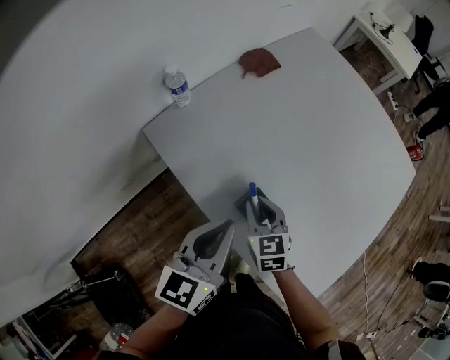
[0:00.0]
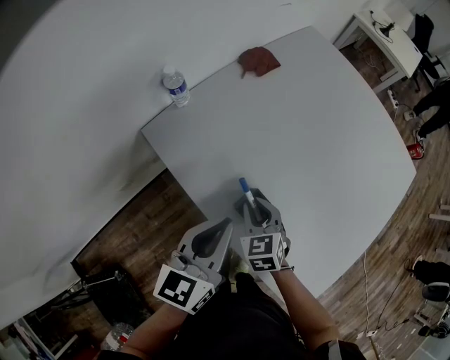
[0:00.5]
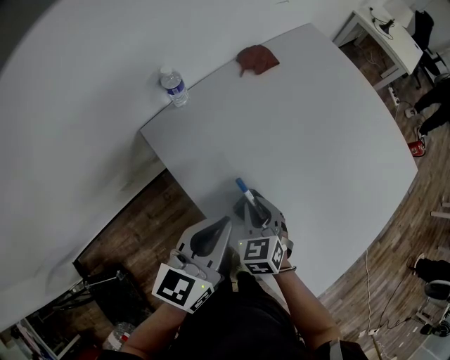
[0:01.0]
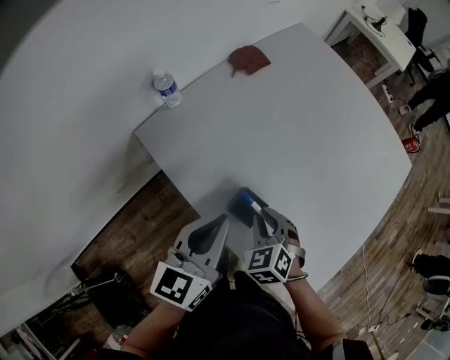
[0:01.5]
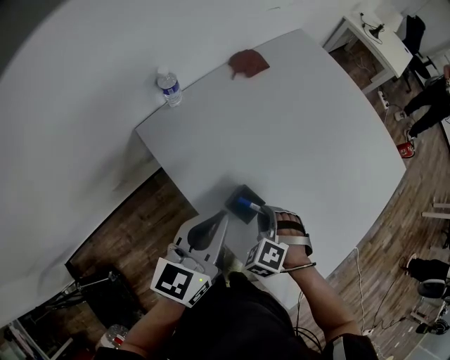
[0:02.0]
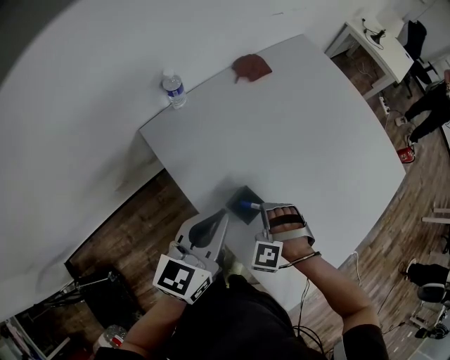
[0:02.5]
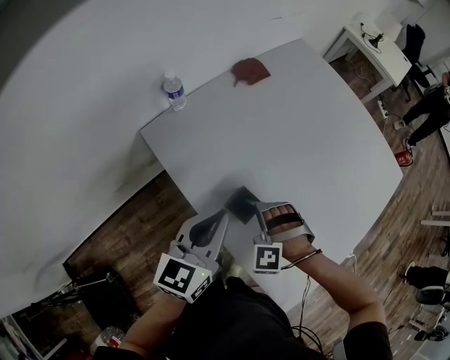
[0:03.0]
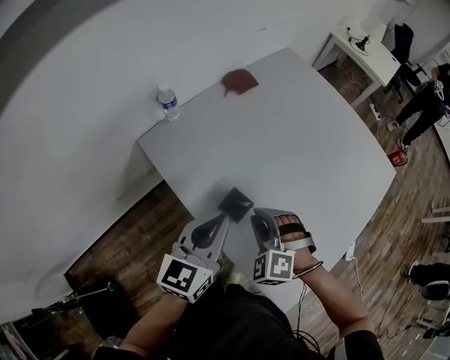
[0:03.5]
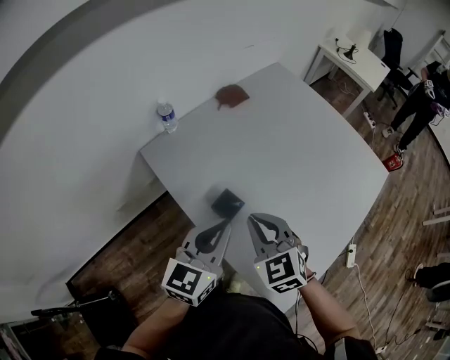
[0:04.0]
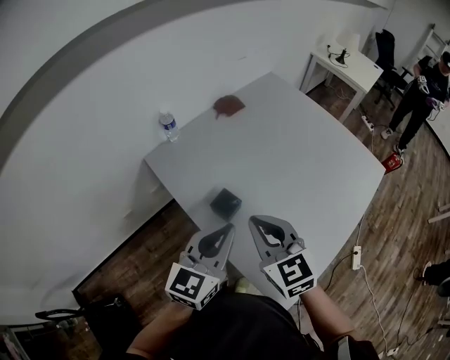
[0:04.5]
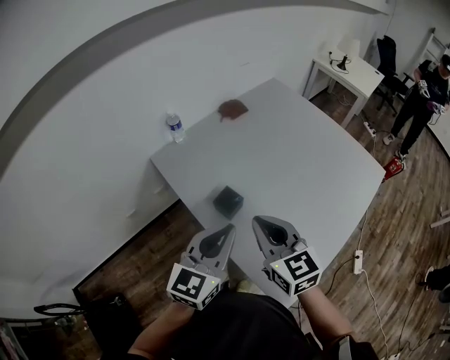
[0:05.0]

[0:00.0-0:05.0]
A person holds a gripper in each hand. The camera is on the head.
0:00.0 to 0:02.5: The right gripper moves some 5 cm, and rolls counterclockwise, seen from behind, by about 80 degrees.
0:02.5 to 0:05.0: The right gripper shifts some 25 cm upward, and rolls clockwise, seen from behind, by about 70 degrees. The left gripper travels backward, to the right and upward by approximately 15 cm.

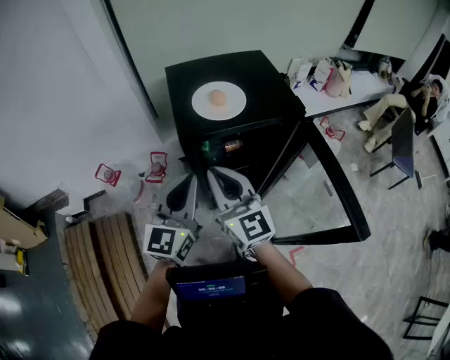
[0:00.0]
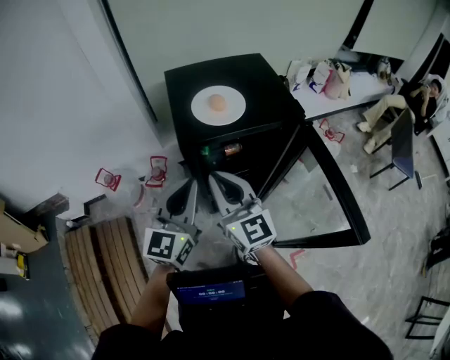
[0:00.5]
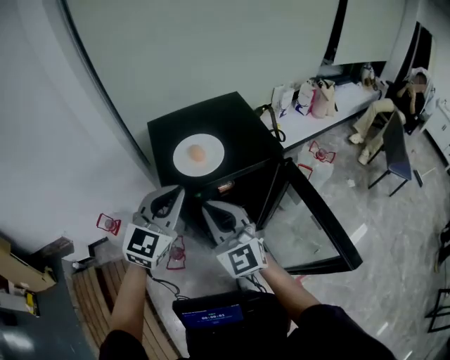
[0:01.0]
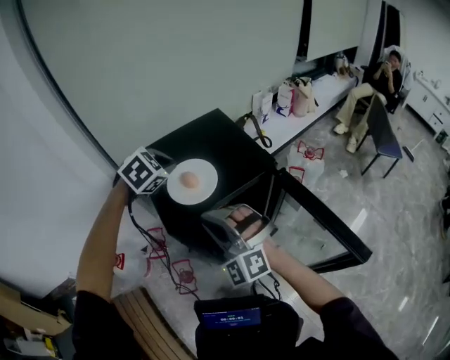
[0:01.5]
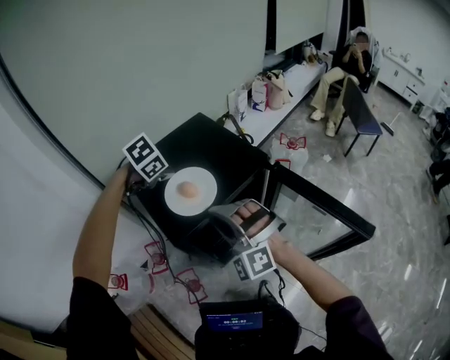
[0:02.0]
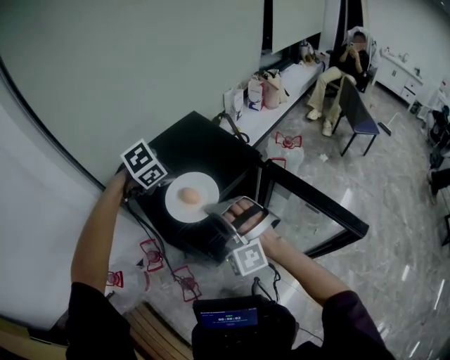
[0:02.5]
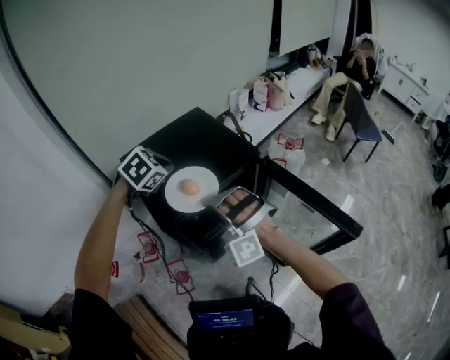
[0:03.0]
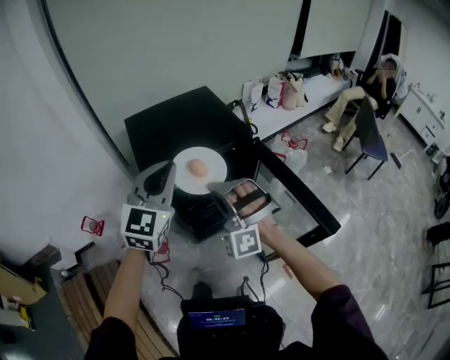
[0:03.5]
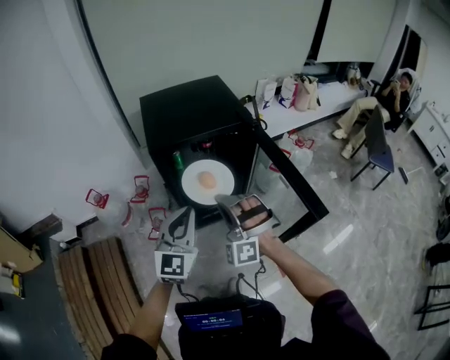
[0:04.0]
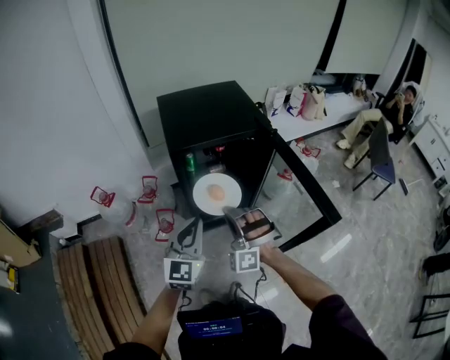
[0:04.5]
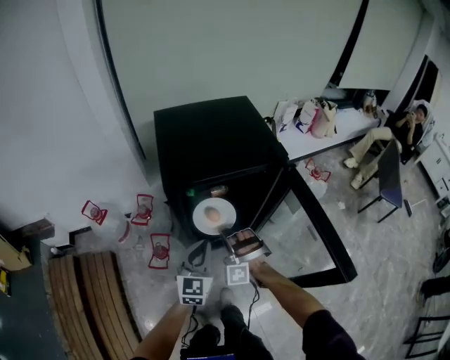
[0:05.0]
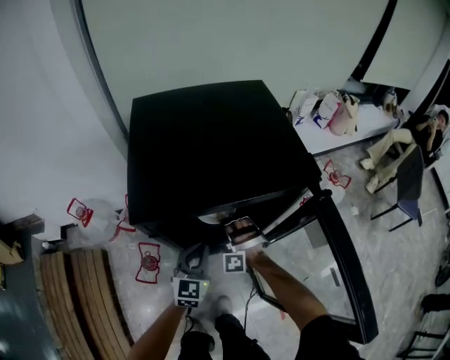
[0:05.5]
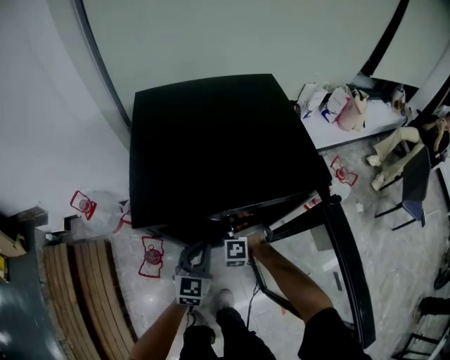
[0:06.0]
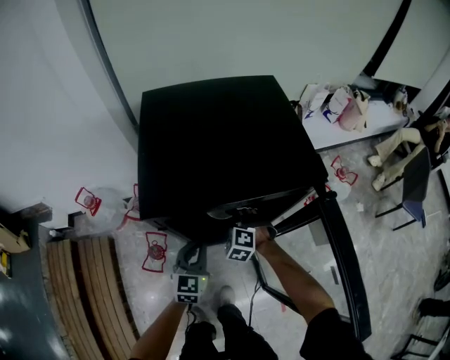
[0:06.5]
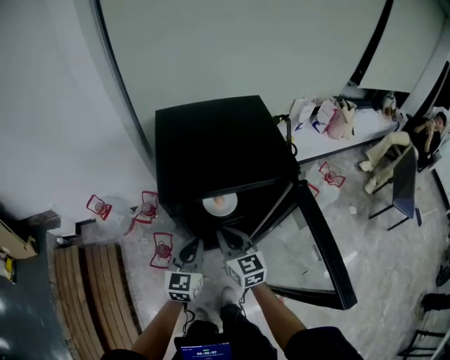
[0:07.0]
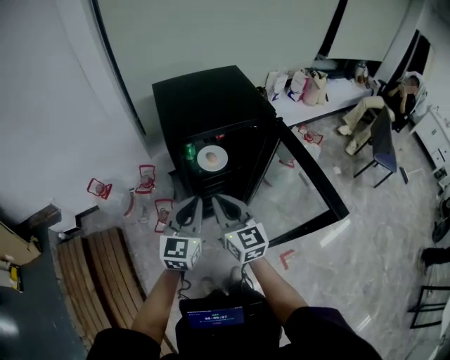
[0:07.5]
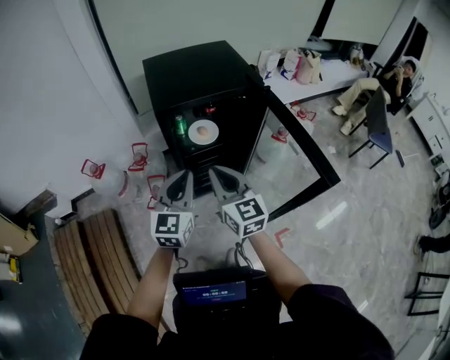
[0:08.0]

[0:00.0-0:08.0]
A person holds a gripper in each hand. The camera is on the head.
0:00.0 to 0:02.0: The right gripper moves approximately 10 cm, and rolls counterclockwise, seen from behind, by roughly 70 degrees. Meanwhile the left gripper travels upward and back again, some 5 cm each way, and angles its fingers downward, by some 70 degrees.
0:02.0 to 0:04.0: The right gripper moves approximately 25 cm. Meanwhile the left gripper moves about 10 cm upward and comes back, and points its fingers about 70 degrees further upward.
0:04.0 to 0:06.0: Both grippers travel together downward and forward, roughly 40 cm. The right gripper points its fingers some 40 degrees further downward.
0:06.0 to 0:08.0: The two grippers go some 40 cm upward and backward. The right gripper rolls clockwise, seen from behind, by some 80 degrees, and opens, then closes again.

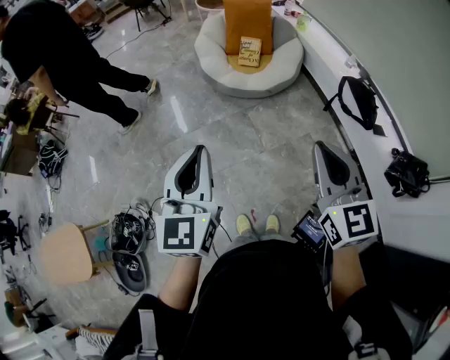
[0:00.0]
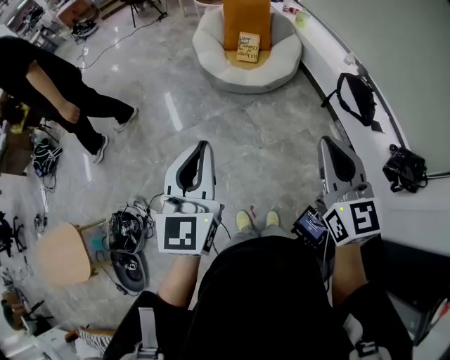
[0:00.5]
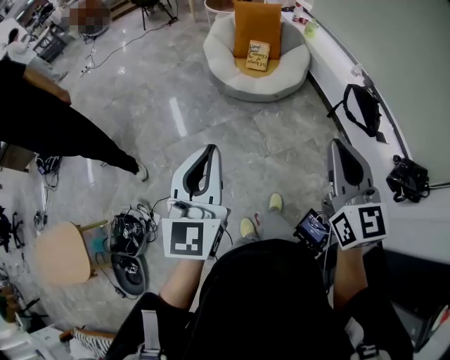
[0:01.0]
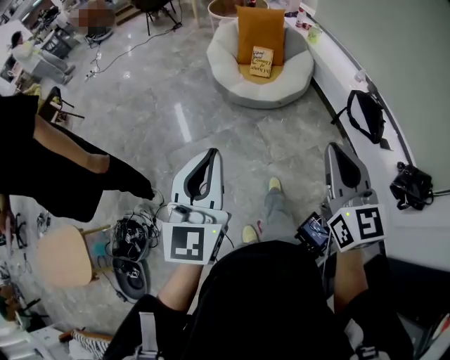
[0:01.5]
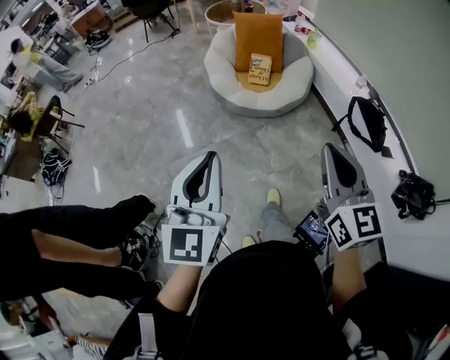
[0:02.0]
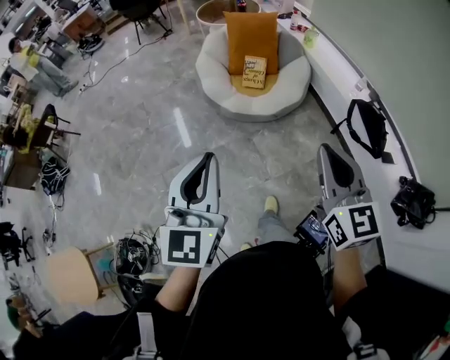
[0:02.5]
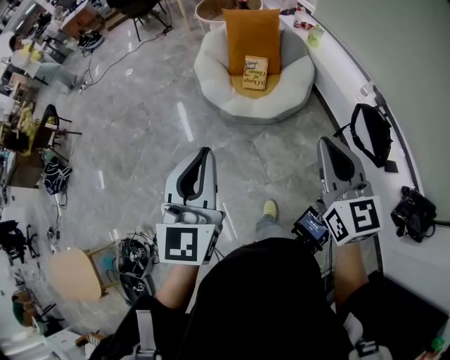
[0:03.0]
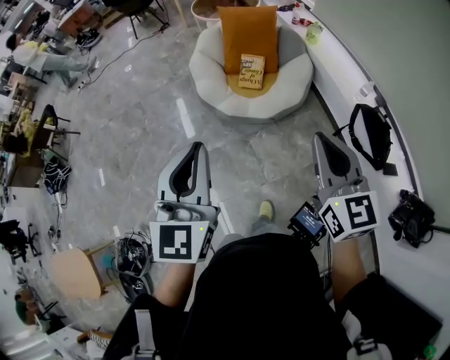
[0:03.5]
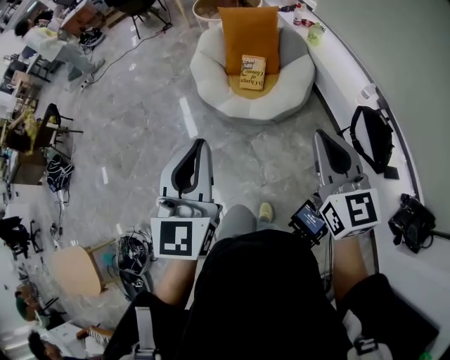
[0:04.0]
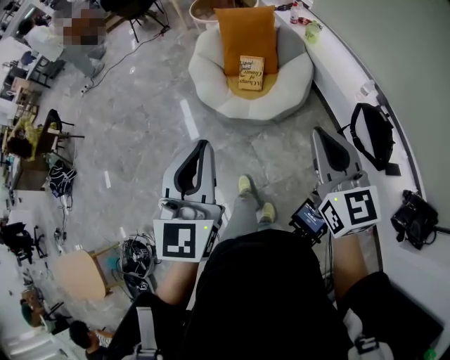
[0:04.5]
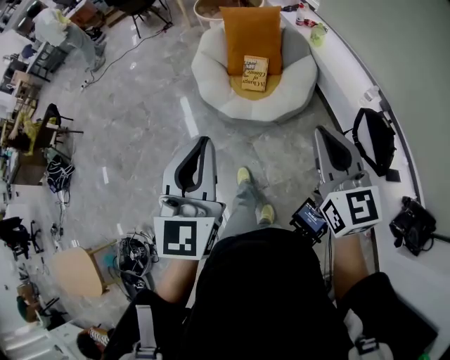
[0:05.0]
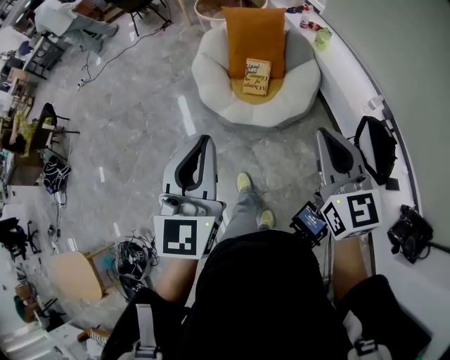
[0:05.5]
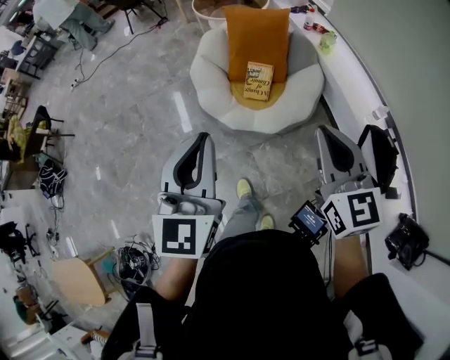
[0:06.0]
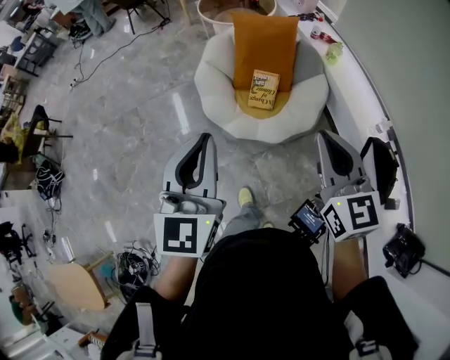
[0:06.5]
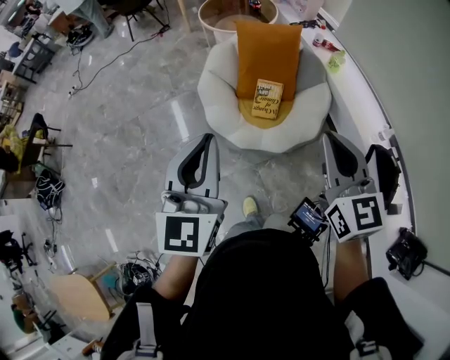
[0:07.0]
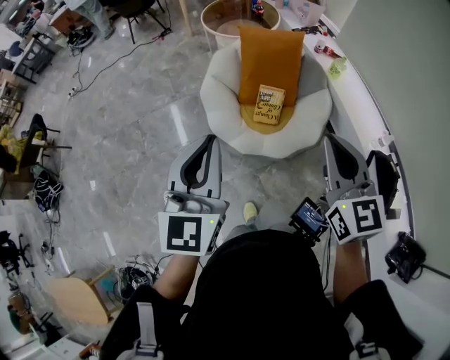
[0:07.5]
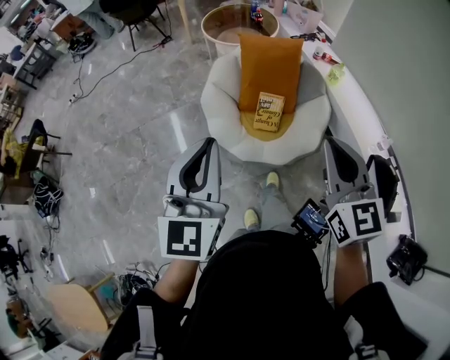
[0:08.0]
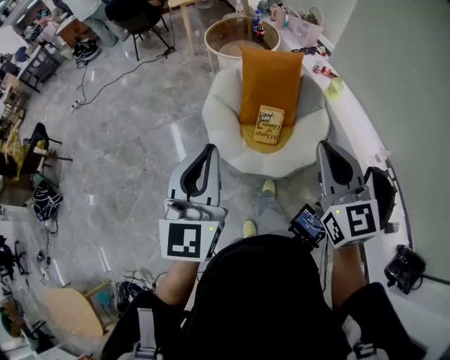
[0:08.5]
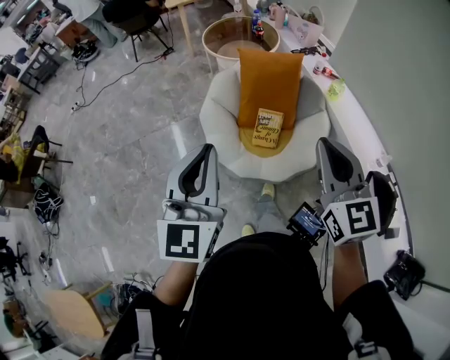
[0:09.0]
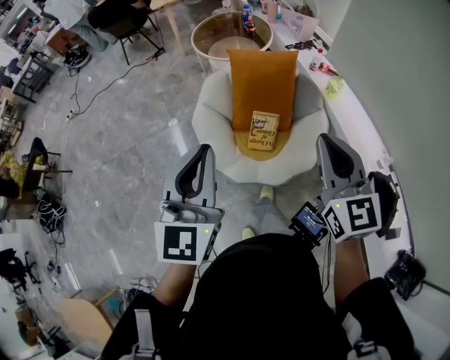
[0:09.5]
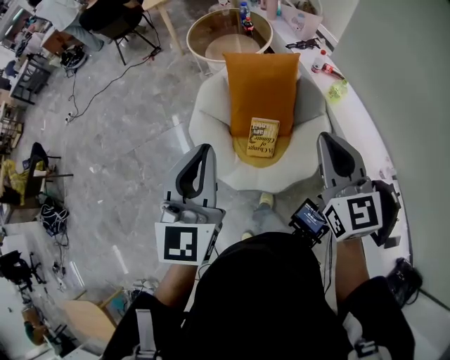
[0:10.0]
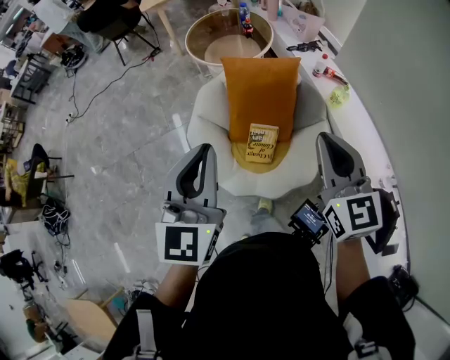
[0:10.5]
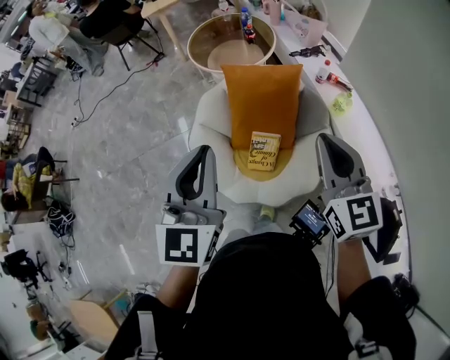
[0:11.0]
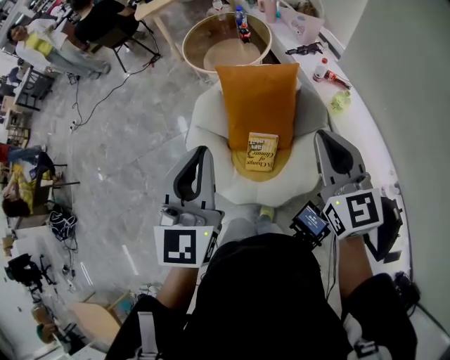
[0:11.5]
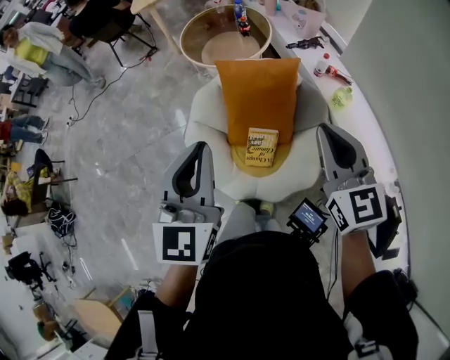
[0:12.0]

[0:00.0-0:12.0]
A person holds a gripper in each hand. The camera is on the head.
0:00.0 to 0:02.0: Both grippers move forward, some 10 cm.
0:02.0 to 0:04.0: Both grippers move forward and to the right, approximately 30 cm.
0:04.0 to 0:06.0: The two grippers go approximately 20 cm forward.
0:06.0 to 0:08.0: The two grippers go roughly 15 cm forward and to the left.
0:08.0 to 0:10.0: The left gripper travels forward and to the right by approximately 25 cm, while the right gripper heads forward, covering about 25 cm.
0:10.0 to 0:12.0: The two grippers go approximately 15 cm forward and to the right.

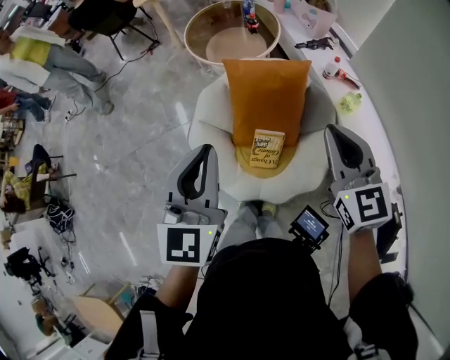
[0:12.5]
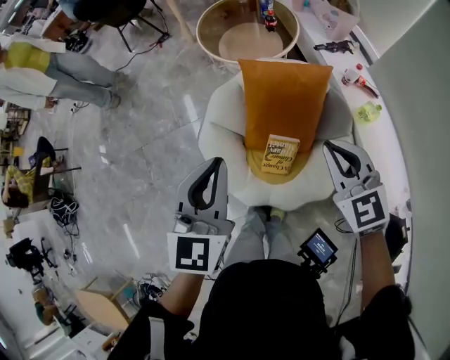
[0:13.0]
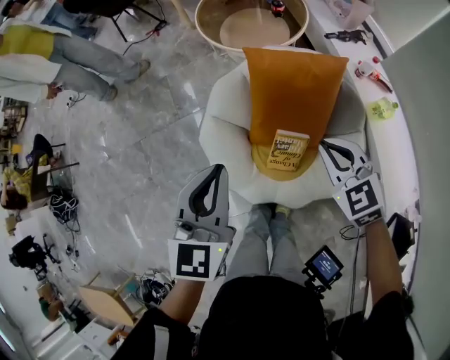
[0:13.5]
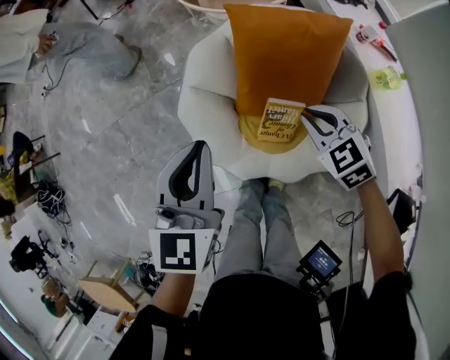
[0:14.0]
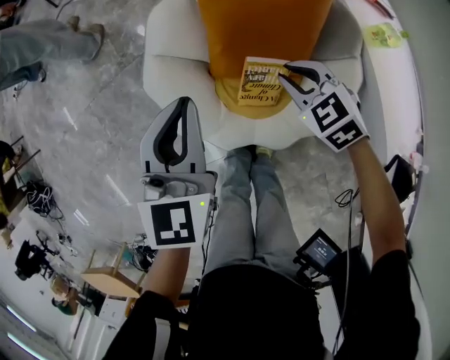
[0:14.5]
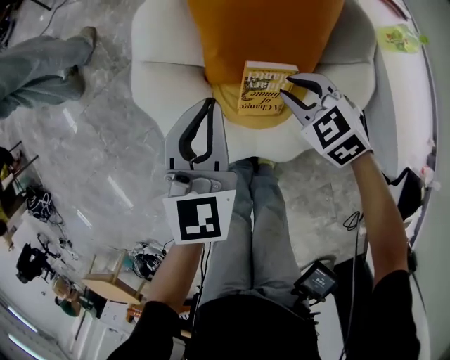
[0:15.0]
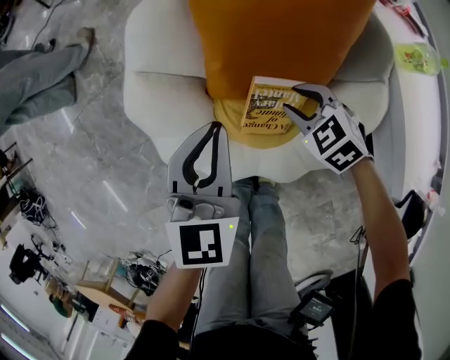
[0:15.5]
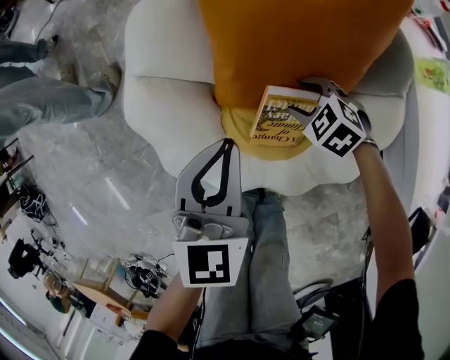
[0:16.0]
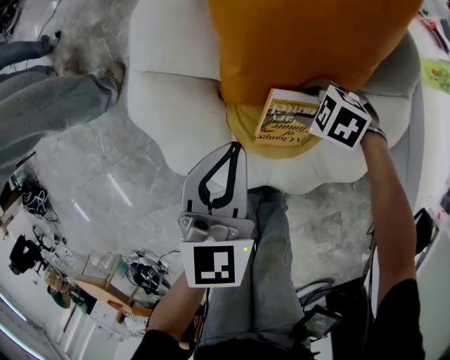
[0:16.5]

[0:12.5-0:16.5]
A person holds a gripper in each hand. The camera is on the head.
0:12.5 to 0:14.5: The grippers both shift downward by some 35 cm. The right gripper tips its fingers downward by roughly 30 degrees.
0:14.5 to 0:16.5: The two grippers go some 25 cm downward. The right gripper changes its angle by about 30 degrees, and opens.
